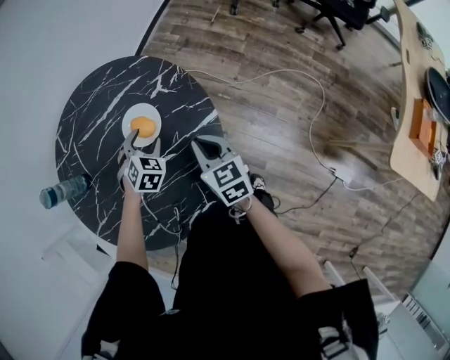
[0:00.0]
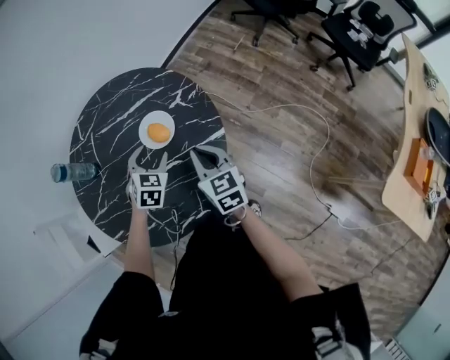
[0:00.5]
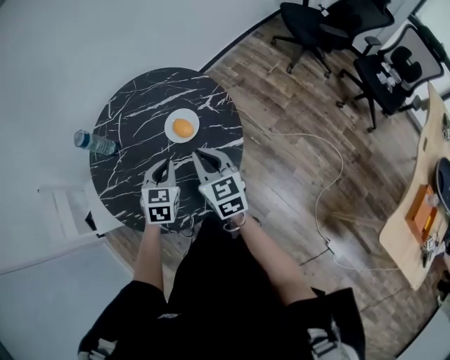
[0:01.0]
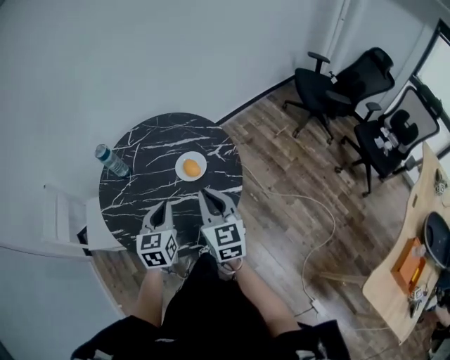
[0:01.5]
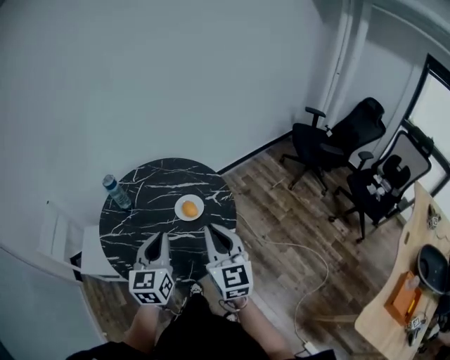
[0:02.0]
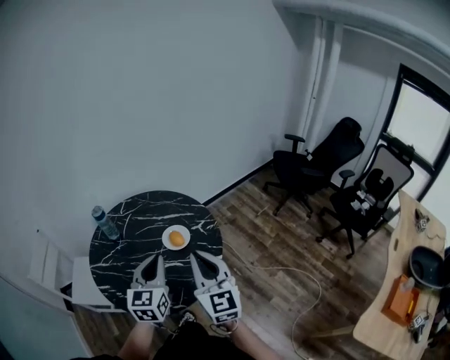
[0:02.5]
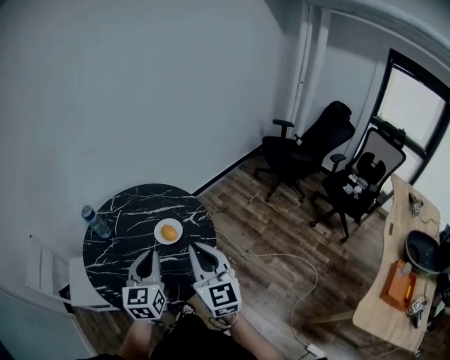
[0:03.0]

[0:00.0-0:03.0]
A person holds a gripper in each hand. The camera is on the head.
0:00.0 to 0:01.5: The left gripper shifts some 30 cm upward and backward, twists roughly 50 degrees counterclockwise, seen from behind, and closes its fingers, while the right gripper travels upward by roughly 20 cm, and changes its angle by some 30 degrees.
0:01.5 to 0:03.0: The right gripper shifts approximately 10 cm upward and backward. Meanwhile the left gripper is displaced upward by some 10 cm.

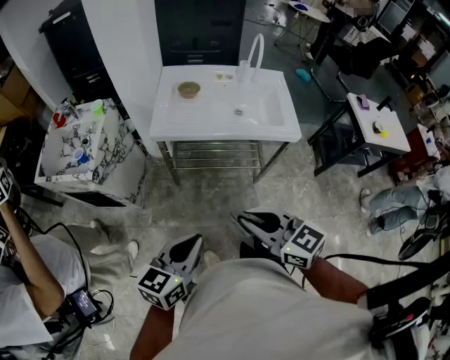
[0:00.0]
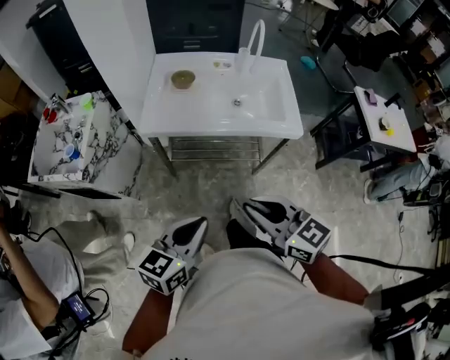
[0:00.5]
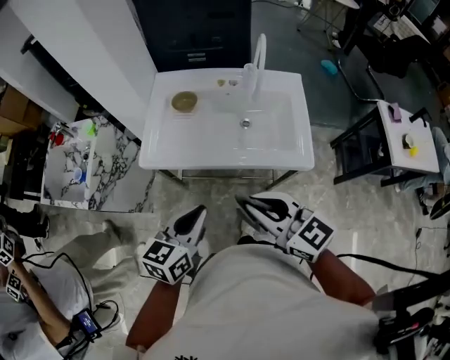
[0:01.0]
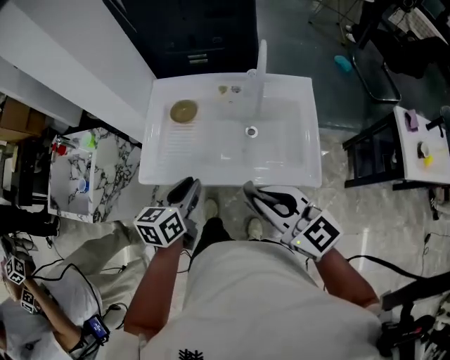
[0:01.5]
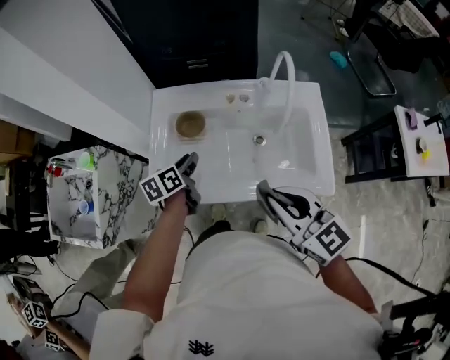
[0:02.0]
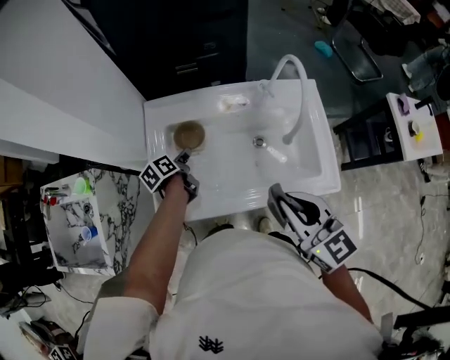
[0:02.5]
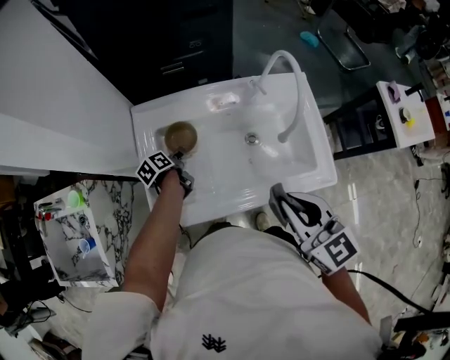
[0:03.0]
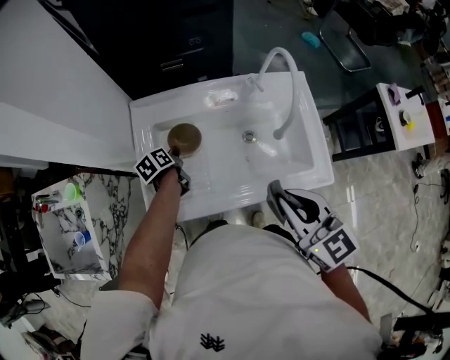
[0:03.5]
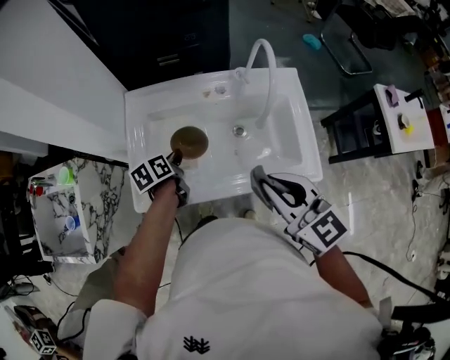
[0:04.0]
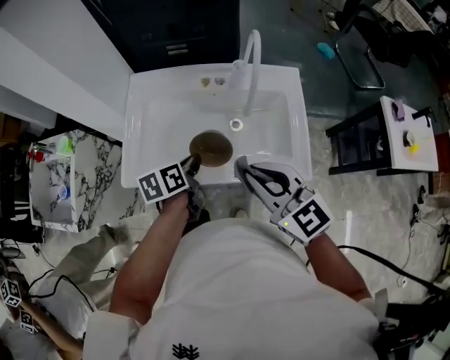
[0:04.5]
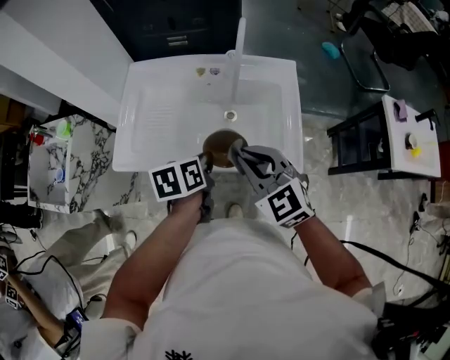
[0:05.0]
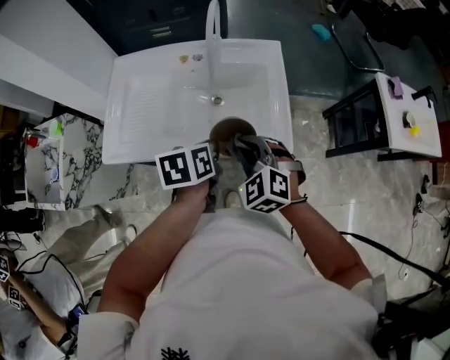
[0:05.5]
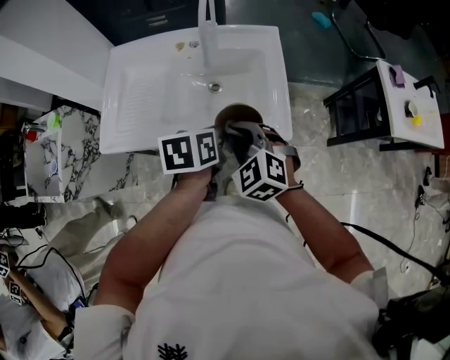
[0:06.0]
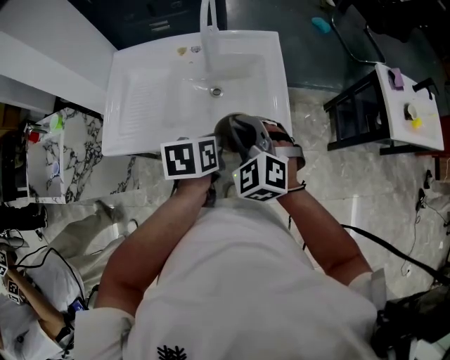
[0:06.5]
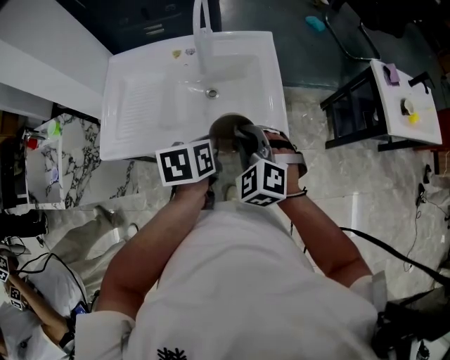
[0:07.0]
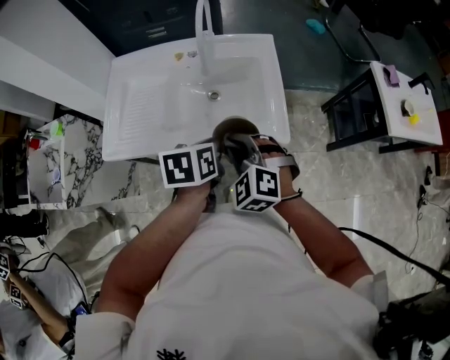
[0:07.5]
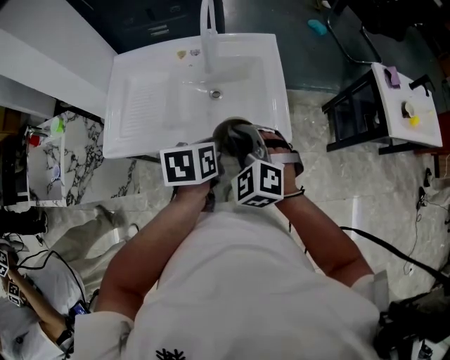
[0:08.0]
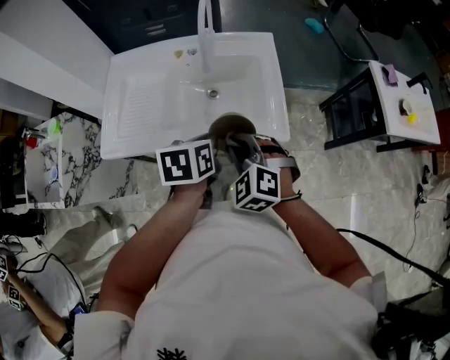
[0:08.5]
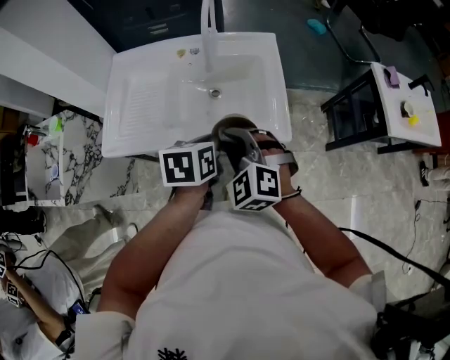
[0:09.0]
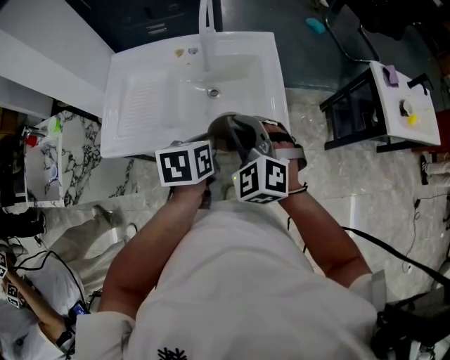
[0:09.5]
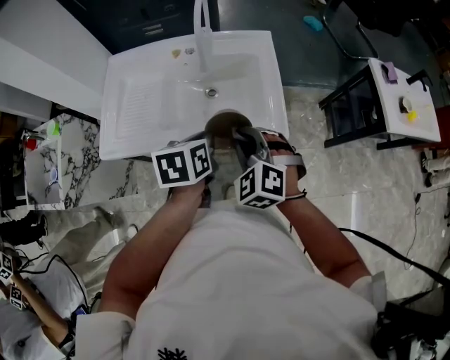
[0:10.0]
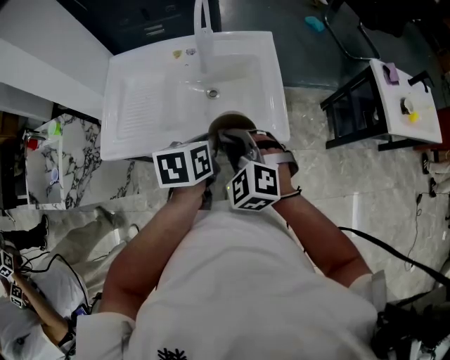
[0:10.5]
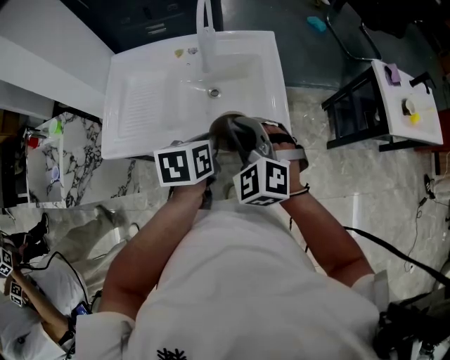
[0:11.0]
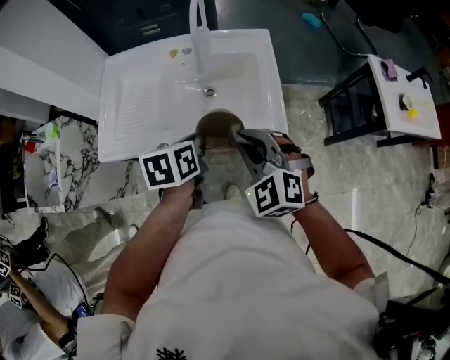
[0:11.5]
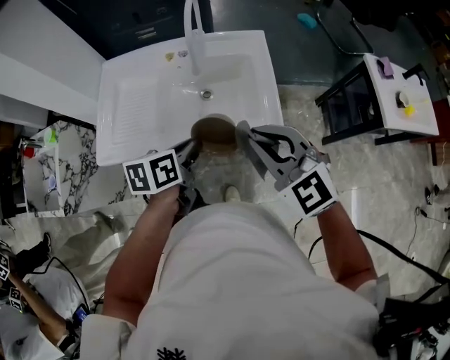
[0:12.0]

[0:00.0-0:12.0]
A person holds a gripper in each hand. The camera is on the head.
0:00.0 to 0:02.0: The pair of grippers is taken forward, approximately 50 cm. The left gripper changes its angle by approximately 30 degrees, and opens its fingers.
0:02.0 to 0:04.0: The left gripper goes downward and returns, approximately 10 cm each way, and closes up.
0:04.0 to 0:06.0: The right gripper shifts about 15 cm downward and to the right, and changes its angle by some 40 degrees. The left gripper goes about 30 cm to the right and backward.
0:06.0 to 0:10.0: The grippers make only small movements.
0:10.0 to 0:12.0: The right gripper goes about 10 cm upward, and rotates about 30 degrees.

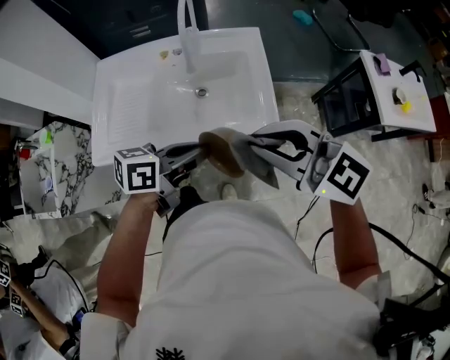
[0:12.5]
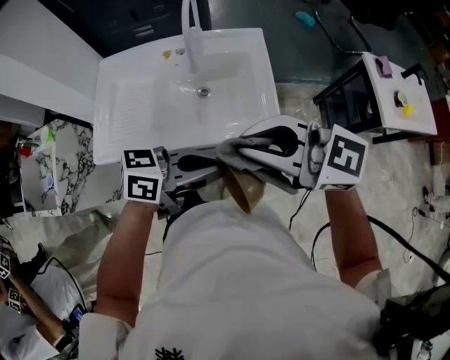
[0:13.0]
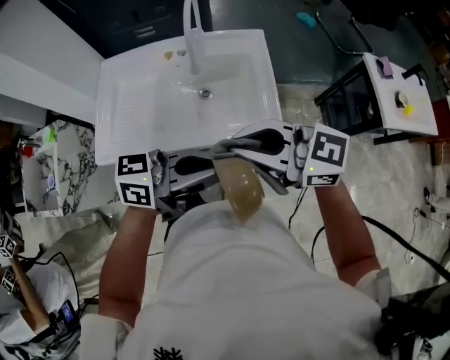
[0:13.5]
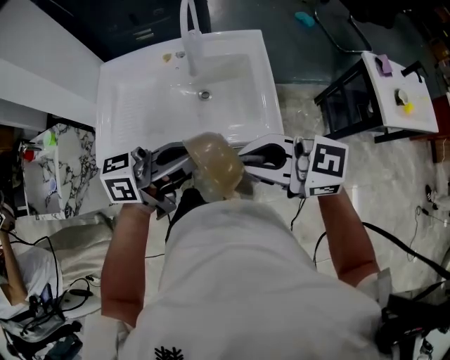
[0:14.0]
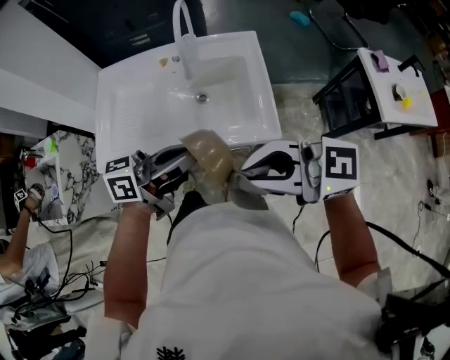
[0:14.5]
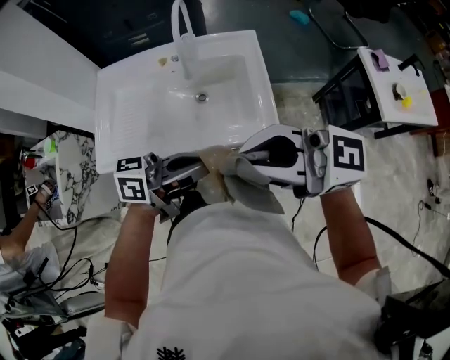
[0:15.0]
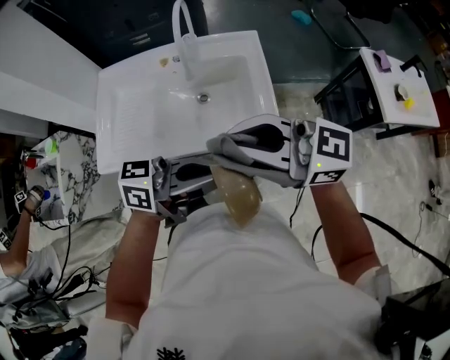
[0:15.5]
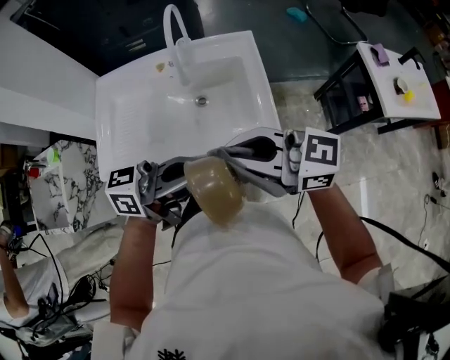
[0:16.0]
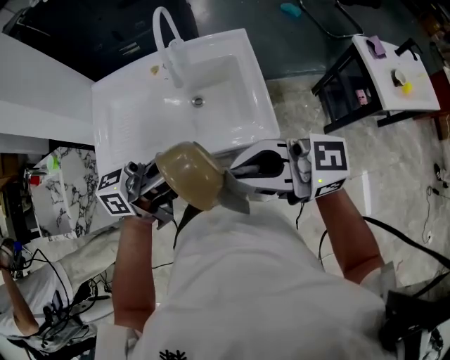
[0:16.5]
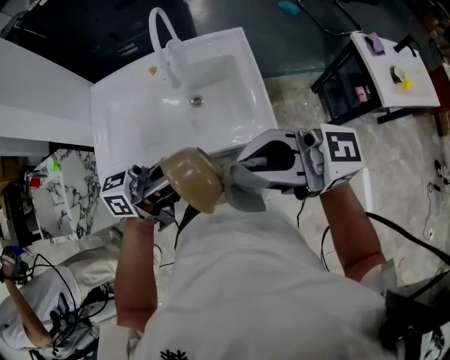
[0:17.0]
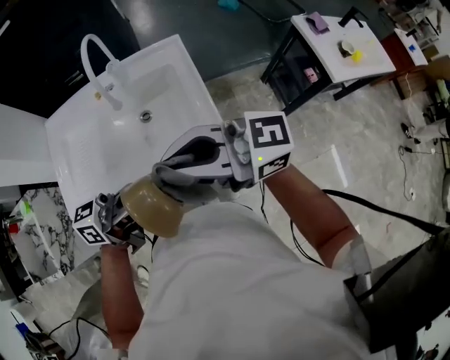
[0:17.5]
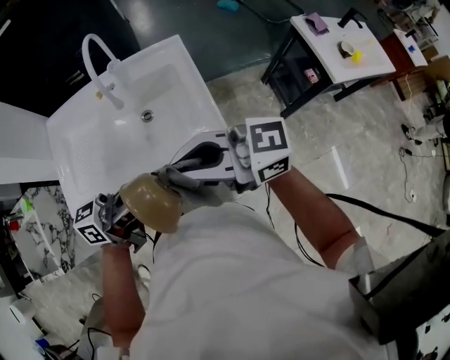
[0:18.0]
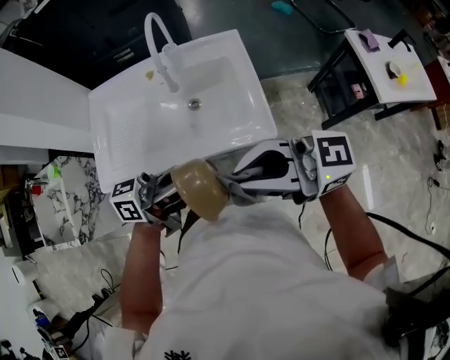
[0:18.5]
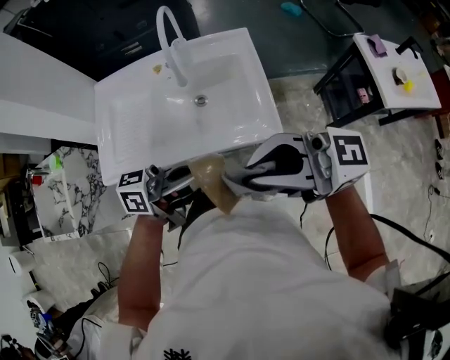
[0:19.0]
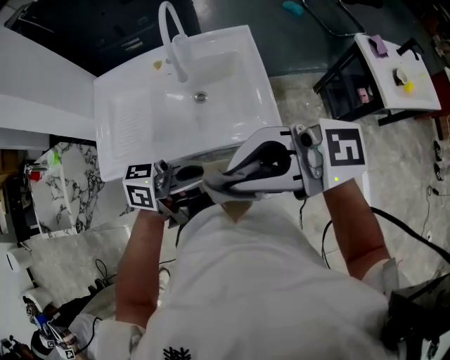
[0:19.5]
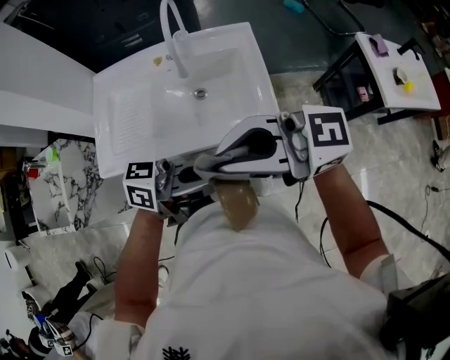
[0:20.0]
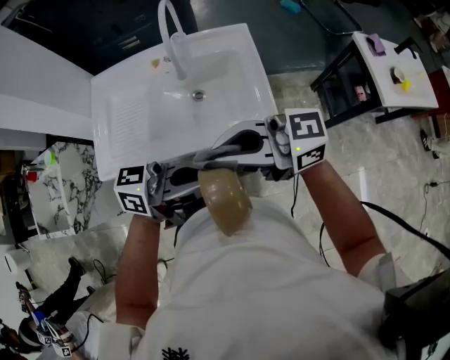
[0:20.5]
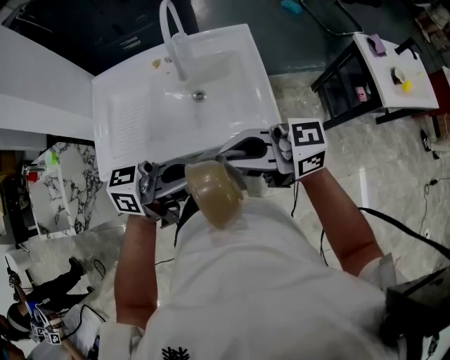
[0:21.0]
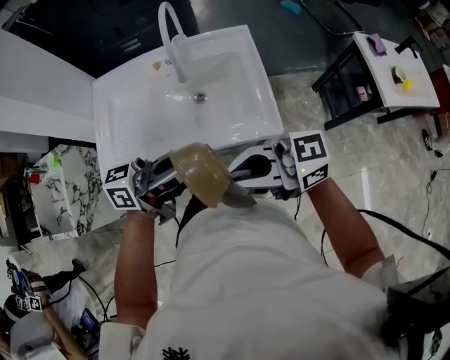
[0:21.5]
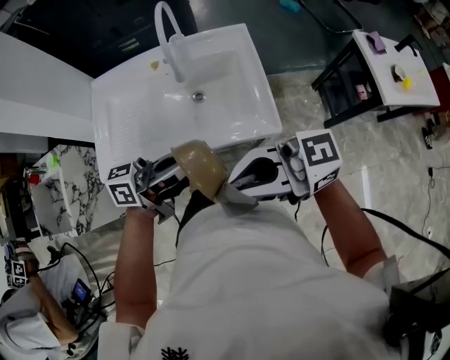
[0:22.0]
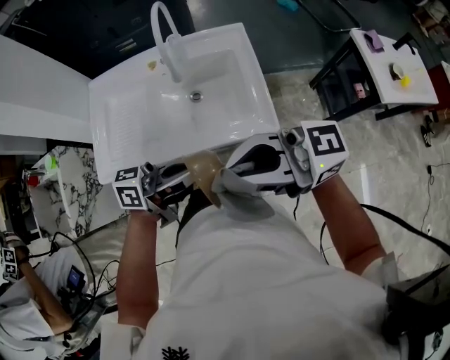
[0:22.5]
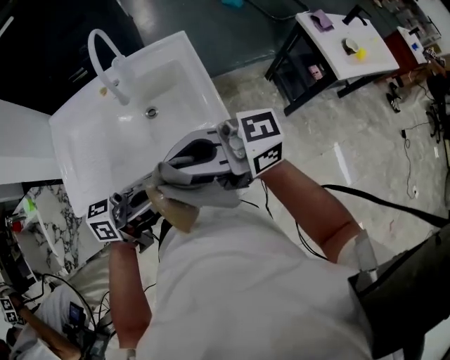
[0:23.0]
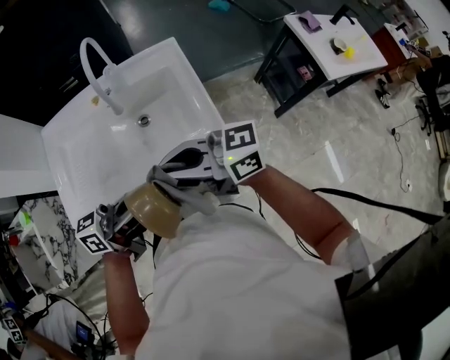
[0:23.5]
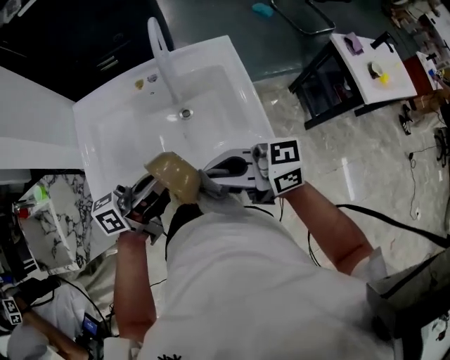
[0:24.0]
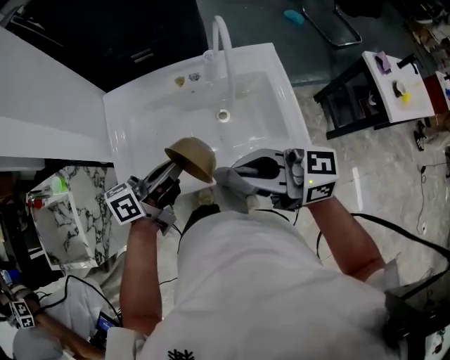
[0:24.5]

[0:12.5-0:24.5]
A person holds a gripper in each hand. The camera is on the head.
0:12.5 to 0:14.5: The left gripper goes roughly 5 cm upward, and rotates about 20 degrees. Meanwhile the right gripper changes place by approximately 5 cm, and swivels roughly 30 degrees.
0:16.5 to 0:18.5: The grippers move only a little.
0:18.5 to 0:20.5: The right gripper ends up about 5 cm from where it was.
0:20.5 to 0:22.5: The right gripper ends up about 5 cm from where it was. Meanwhile the left gripper ends up approximately 5 cm from where it was.
0:22.5 to 0:24.5: The left gripper ends up about 25 cm from where it was, and turns by roughly 20 degrees. Meanwhile the right gripper ends up roughly 20 cm from where it was, and turns by some 20 degrees.
